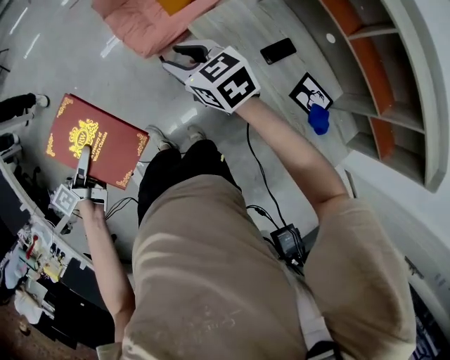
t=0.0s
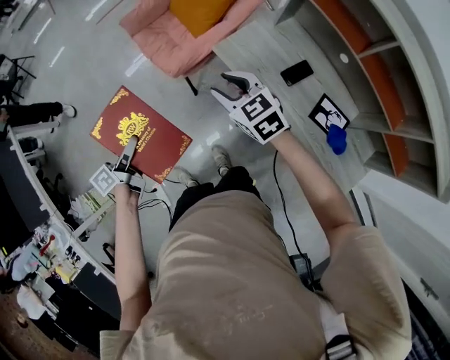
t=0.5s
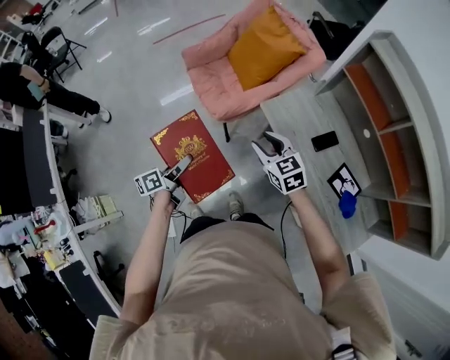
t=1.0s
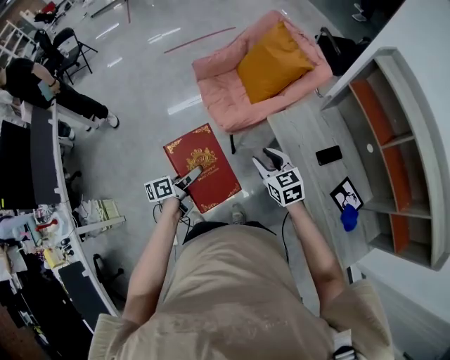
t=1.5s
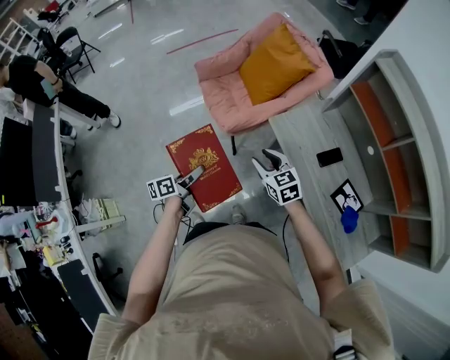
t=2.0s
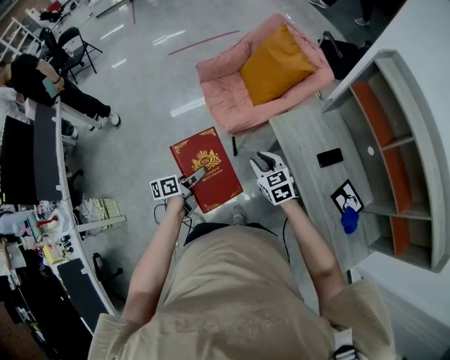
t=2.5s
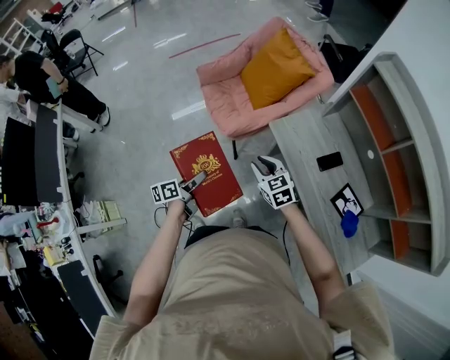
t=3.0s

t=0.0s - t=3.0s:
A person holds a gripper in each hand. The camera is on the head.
t=0.0s - t=1.5s: The right gripper travels backward by roughly 5 cm. Meanwhile the left gripper shifts some 5 cm downward.
t=1.5s - t=3.0s: There are only small adjustments of the grippers.

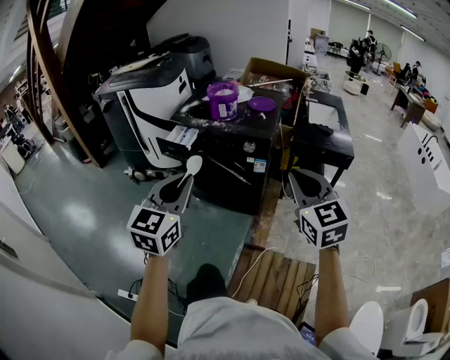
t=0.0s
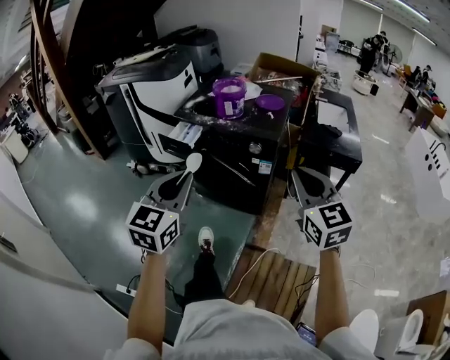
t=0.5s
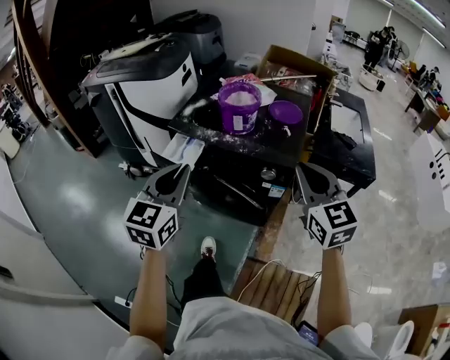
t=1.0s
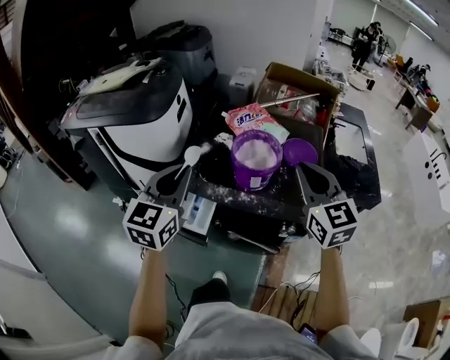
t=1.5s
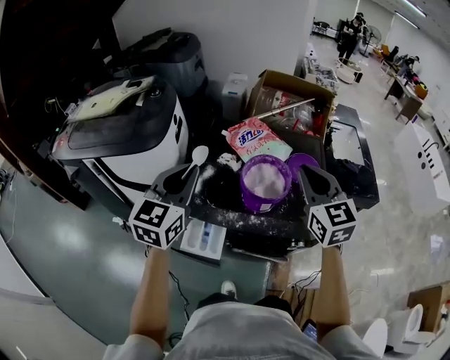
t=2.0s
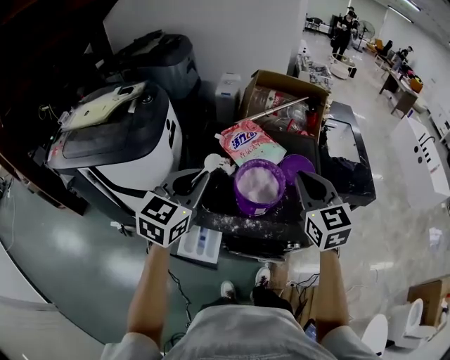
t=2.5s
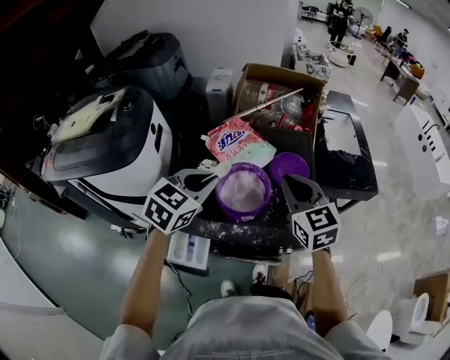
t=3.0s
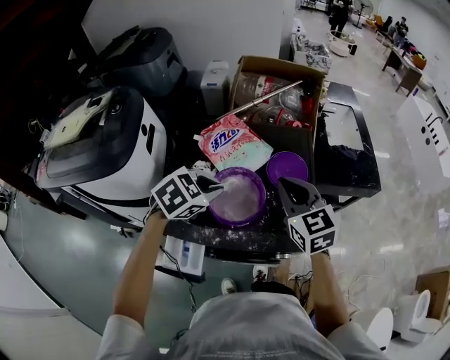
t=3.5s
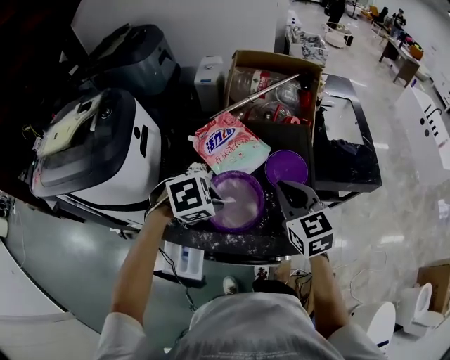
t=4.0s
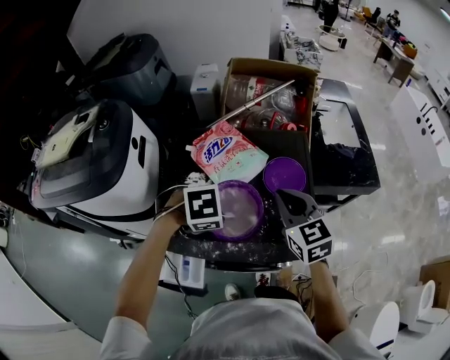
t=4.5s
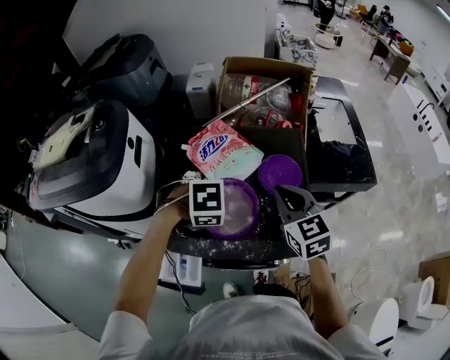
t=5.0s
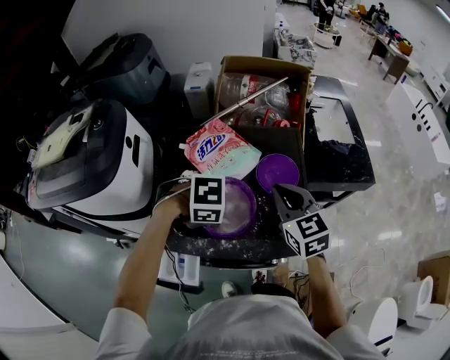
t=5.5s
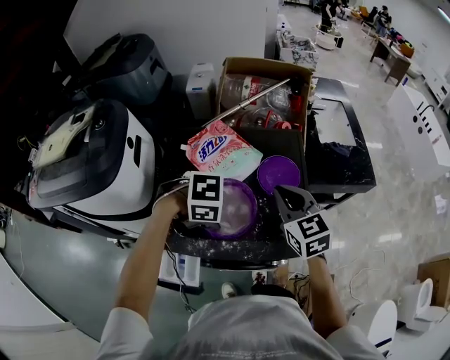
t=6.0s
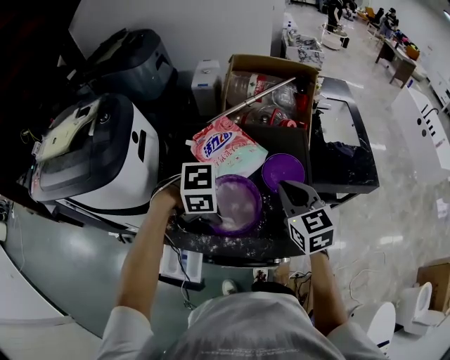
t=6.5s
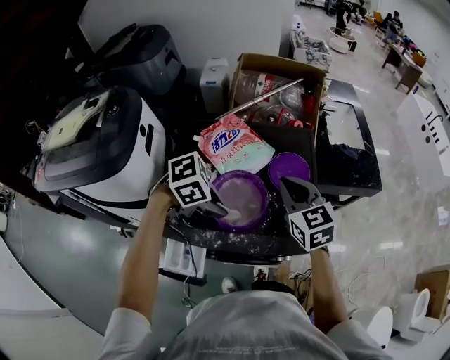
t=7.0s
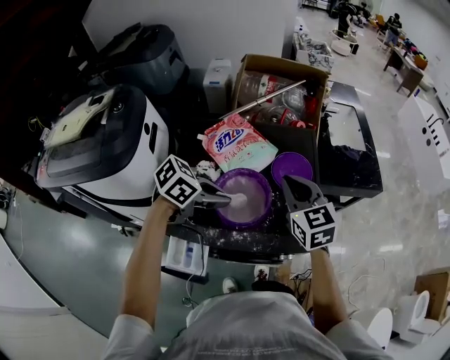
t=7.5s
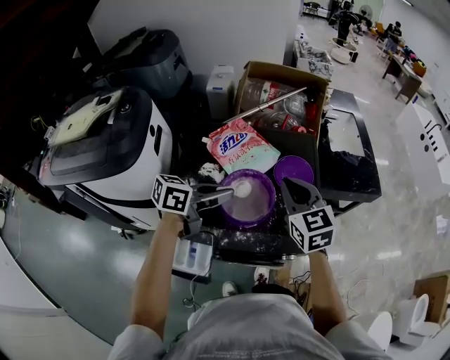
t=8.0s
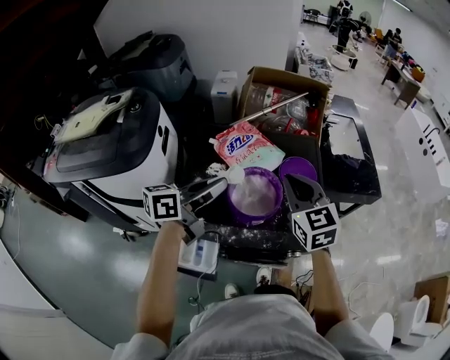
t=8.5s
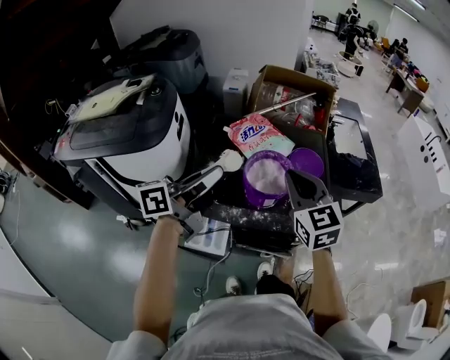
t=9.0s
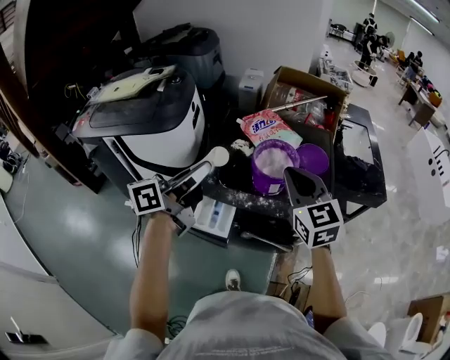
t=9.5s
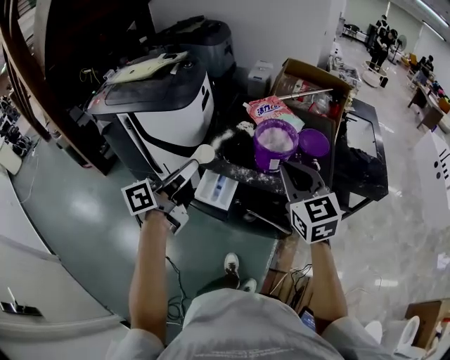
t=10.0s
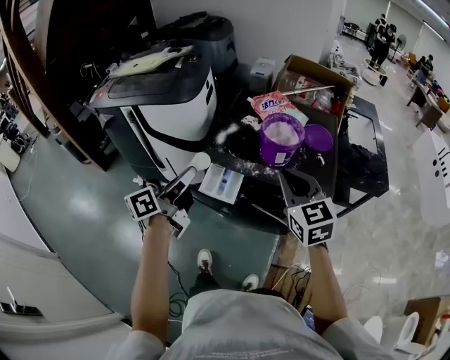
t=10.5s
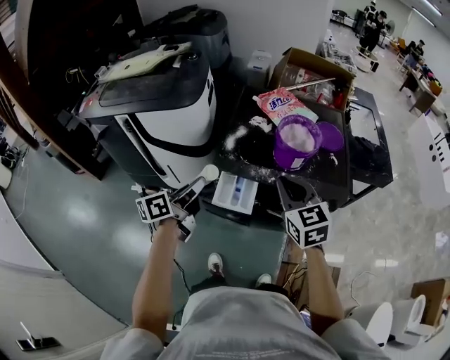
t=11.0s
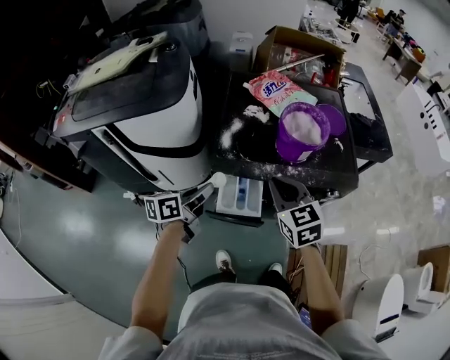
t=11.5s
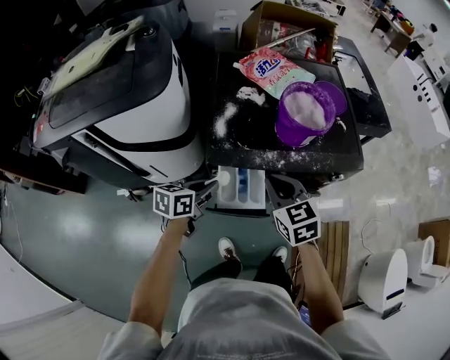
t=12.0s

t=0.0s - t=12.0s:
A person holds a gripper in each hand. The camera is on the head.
t=0.0s - t=2.0s: Both grippers are carried forward, approximately 60 cm.
t=2.0s - t=4.0s: The right gripper moves downward, about 10 cm; the left gripper ends up roughly 25 cm from where it was, and points its fingers about 60 degrees further downward.
t=4.0s - t=6.0s: The left gripper swivels some 30 degrees.
t=6.0s - t=8.0s: The right gripper shifts by about 5 cm. Meanwhile the left gripper moves about 10 cm, and tilts its fingers approximately 50 degrees upward.
t=8.0s - t=10.0s: The left gripper shifts by about 30 cm, and turns by about 50 degrees. The right gripper changes place by about 25 cm.
t=10.0s - t=12.0s: The right gripper shifts about 25 cm downward and to the left, and turns by about 30 degrees. The left gripper moves downward, roughly 30 cm, and tips its fingers downward by some 40 degrees.

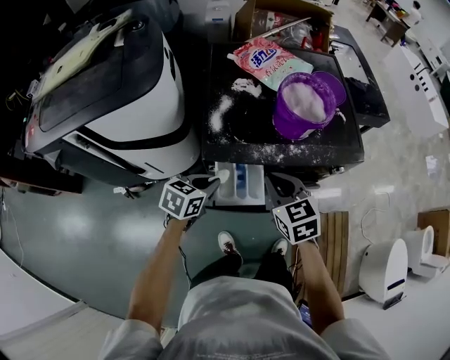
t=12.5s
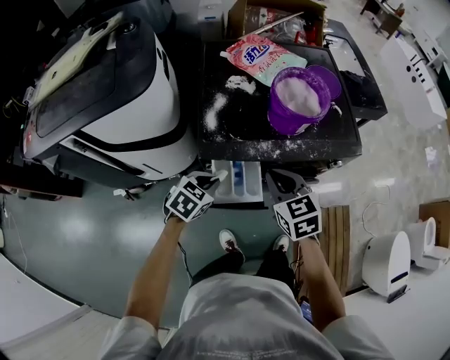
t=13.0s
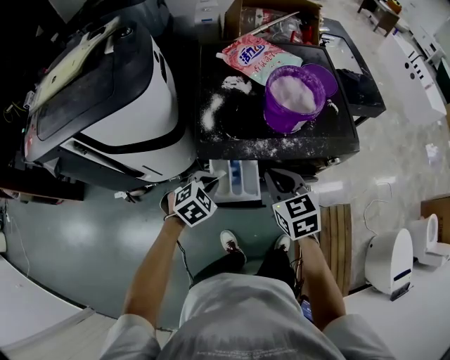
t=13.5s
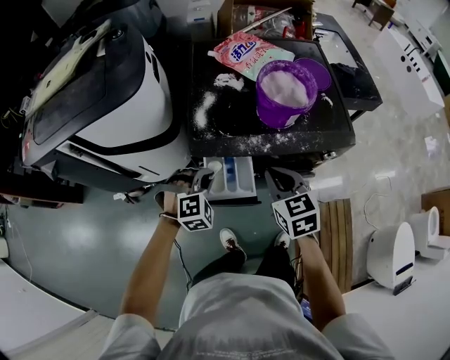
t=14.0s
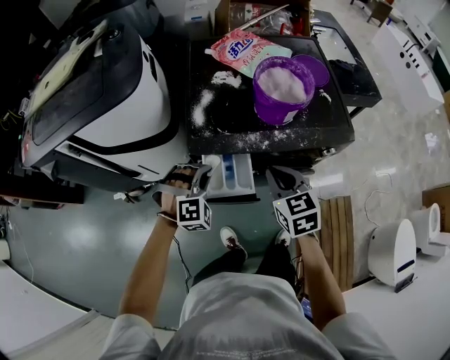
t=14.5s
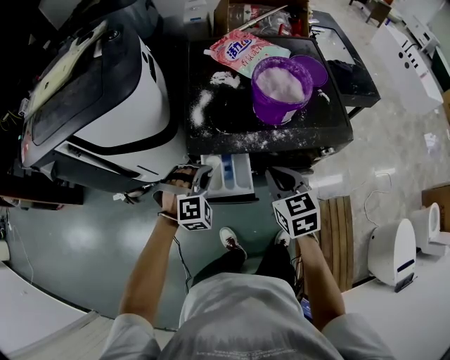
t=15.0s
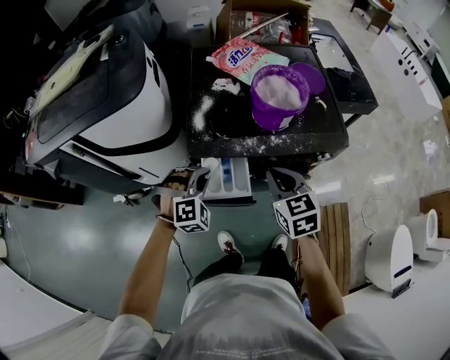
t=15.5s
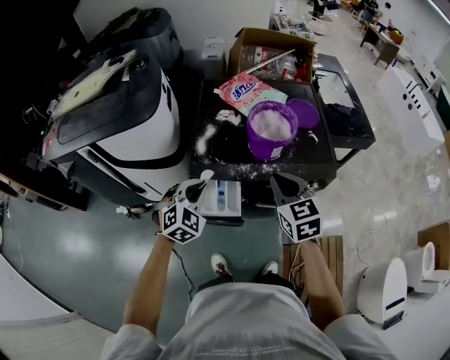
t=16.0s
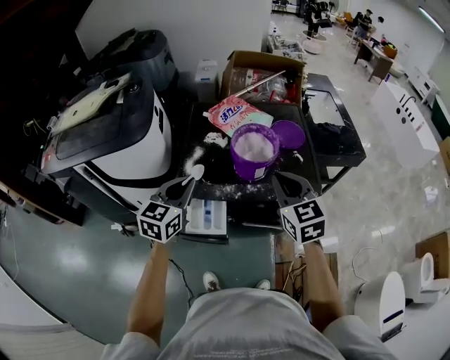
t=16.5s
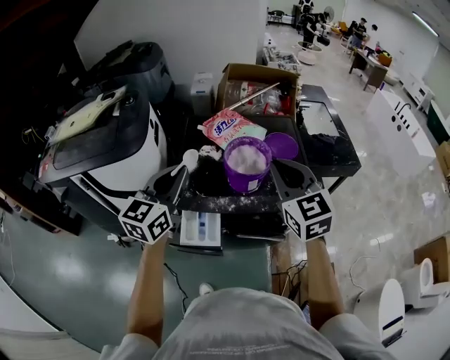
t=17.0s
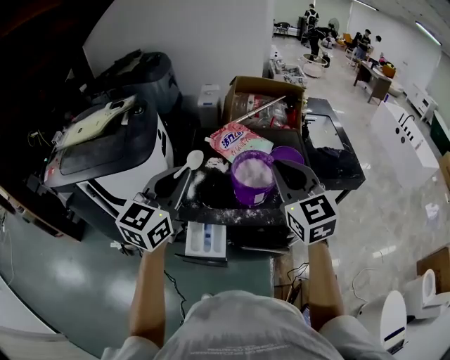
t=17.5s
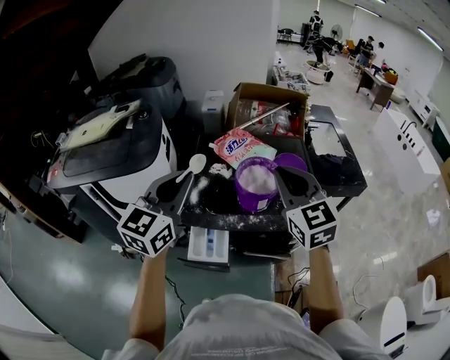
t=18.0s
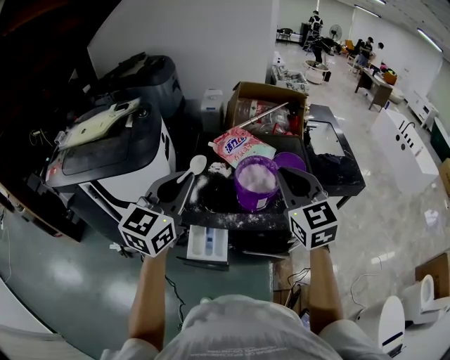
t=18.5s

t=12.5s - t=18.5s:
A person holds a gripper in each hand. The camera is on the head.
t=12.5s - t=14.5s: The right gripper shifts by some 5 cm. The left gripper rolls clockwise, seen from behind, by approximately 80 degrees.
t=14.5s - t=16.5s: The right gripper goes roughly 20 cm upward and to the right. The left gripper goes some 20 cm upward, and twists about 70 degrees counterclockwise, seen from behind.
t=16.5s - t=18.5s: The two grippers go some 15 cm upward.

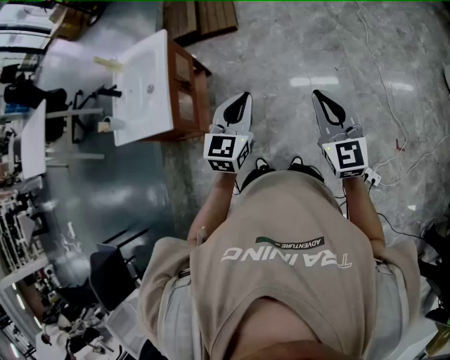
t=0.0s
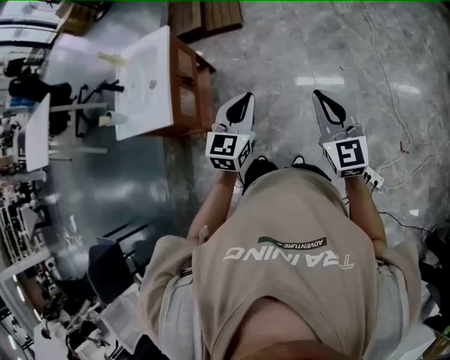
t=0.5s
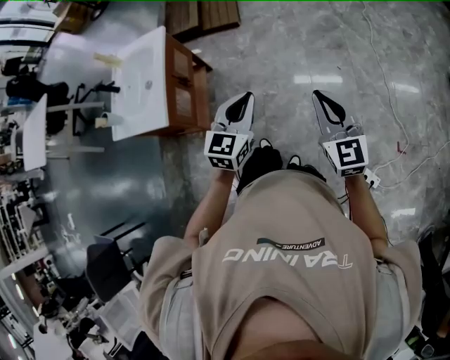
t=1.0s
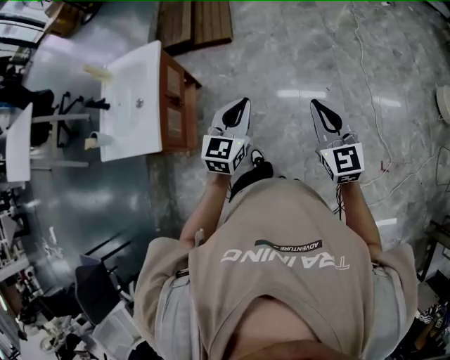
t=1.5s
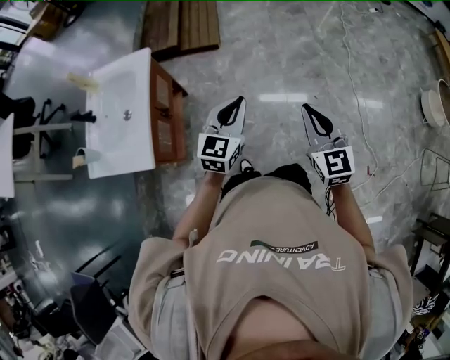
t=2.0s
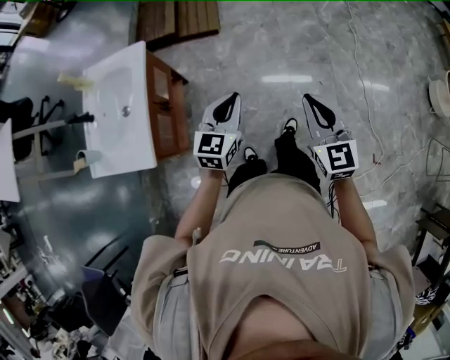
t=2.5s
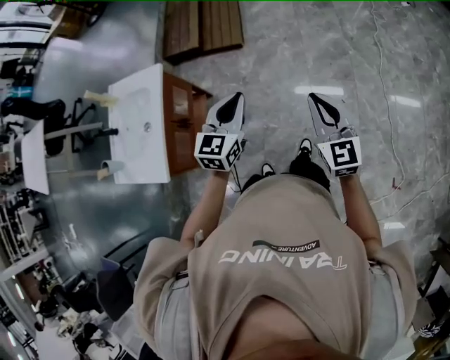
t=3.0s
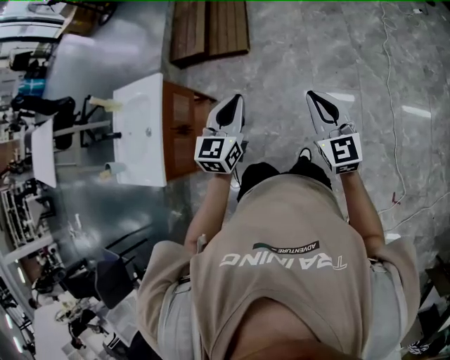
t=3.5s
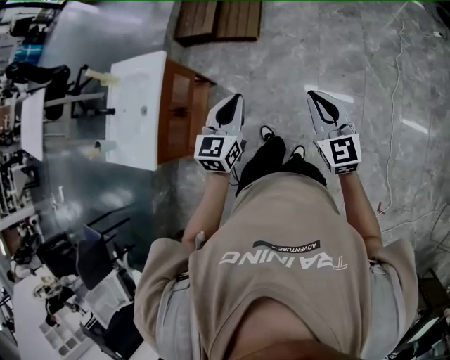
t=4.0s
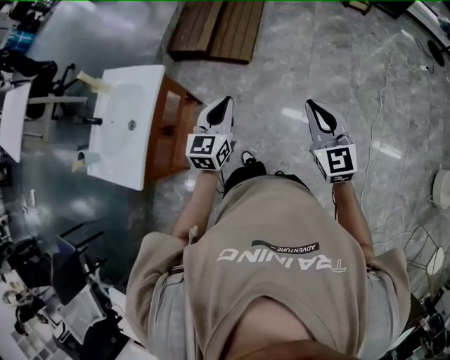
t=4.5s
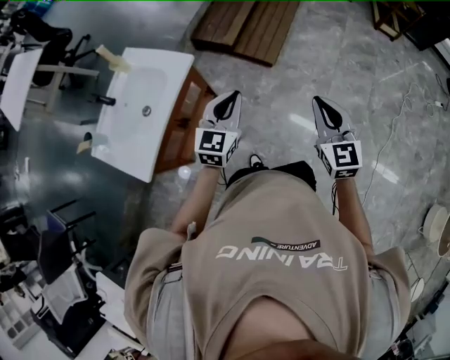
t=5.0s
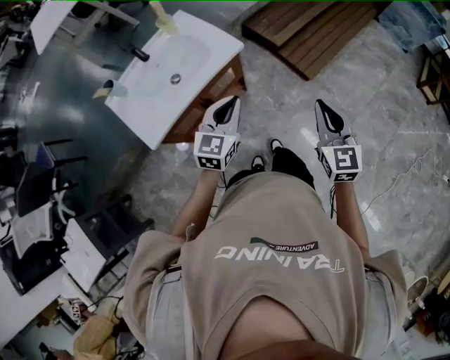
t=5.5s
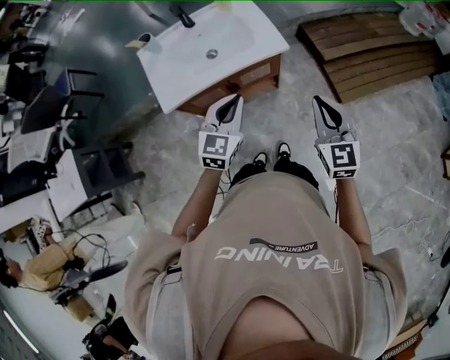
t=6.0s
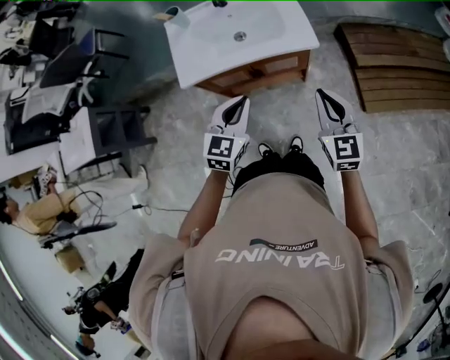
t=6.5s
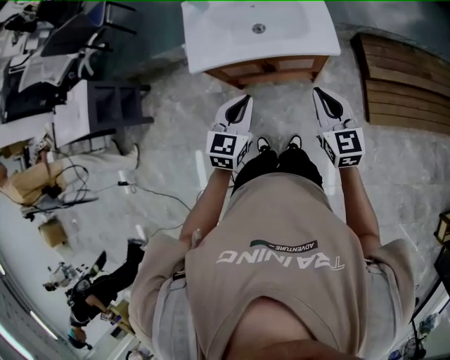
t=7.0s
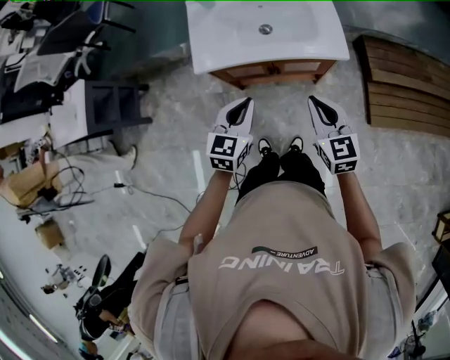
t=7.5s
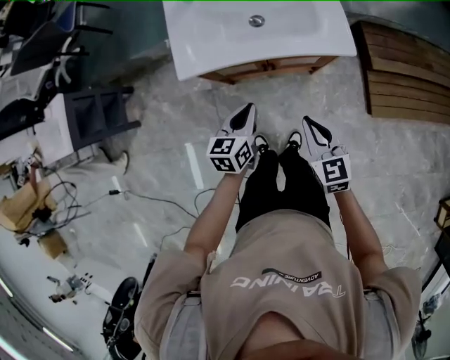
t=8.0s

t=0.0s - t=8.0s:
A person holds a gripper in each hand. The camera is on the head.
t=0.0s - t=2.0s: Both grippers move forward, some 15 cm.
t=2.0s - t=4.0s: The grippers both shift forward by about 20 cm. The left gripper rotates roughly 20 degrees.
t=4.0s - t=6.0s: The right gripper moves about 40 cm, and turns by approximately 50 degrees. The left gripper shifts by about 25 cm, and rotates approximately 50 degrees.
t=6.0s - t=8.0s: Both grippers move downward and to the left, some 20 cm. The left gripper changes its angle by about 40 degrees, while the right gripper rotates approximately 30 degrees.
